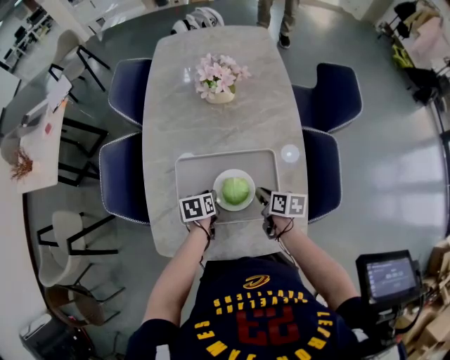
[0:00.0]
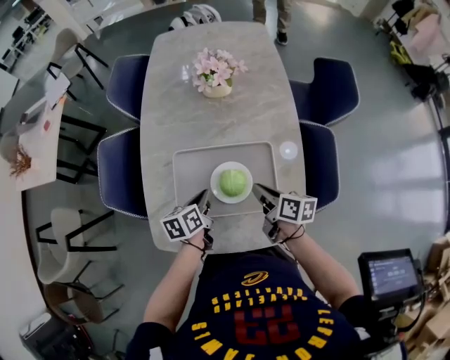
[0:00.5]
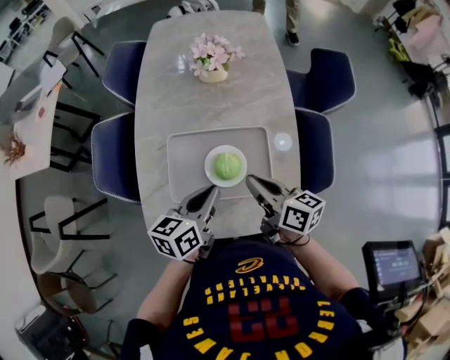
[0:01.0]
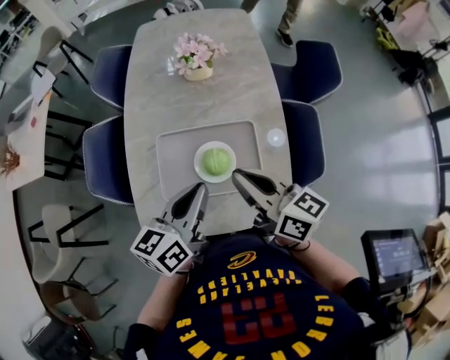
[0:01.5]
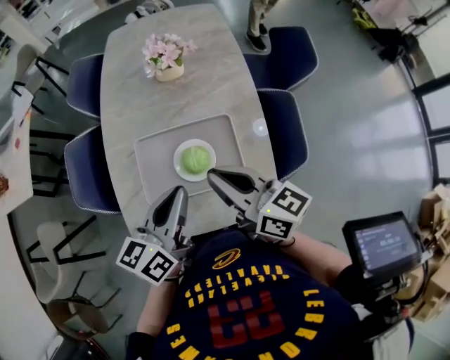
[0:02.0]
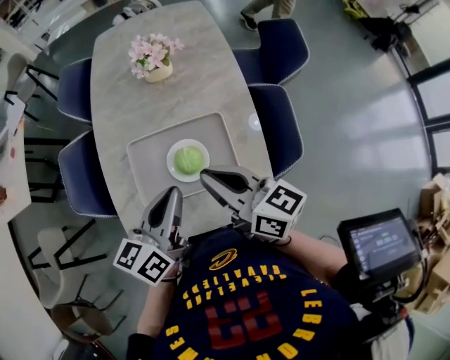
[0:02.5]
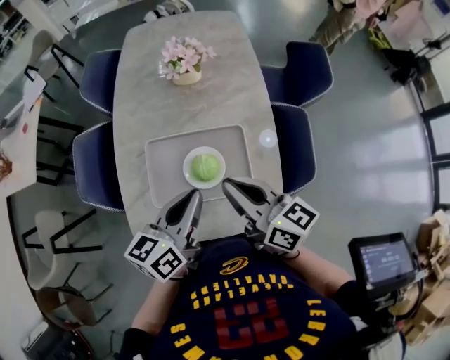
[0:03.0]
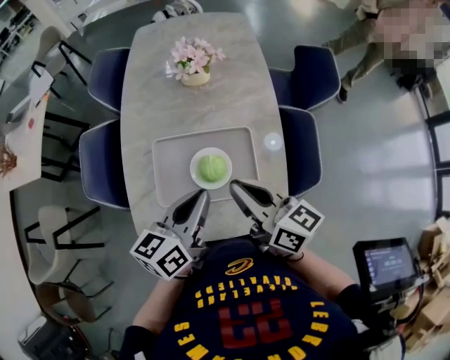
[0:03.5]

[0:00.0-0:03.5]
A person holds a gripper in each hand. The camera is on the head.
0:00.0 to 0:02.0: The grippers both shift upward by roughly 30 cm. The left gripper tips its fingers upward by approximately 50 degrees. Meanwhile the right gripper angles its fingers upward, by roughly 40 degrees.
0:02.0 to 0:03.5: The grippers make only small movements.

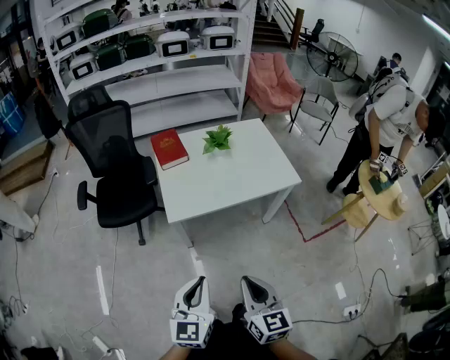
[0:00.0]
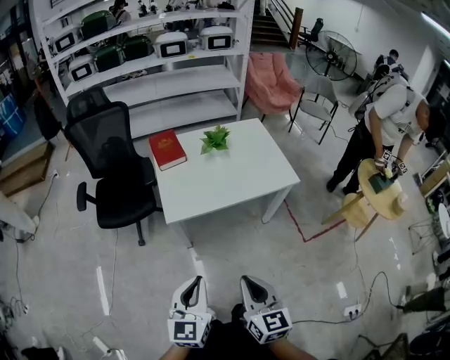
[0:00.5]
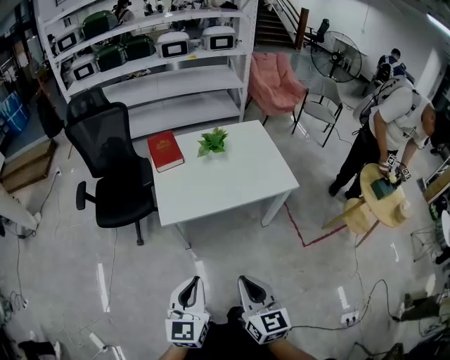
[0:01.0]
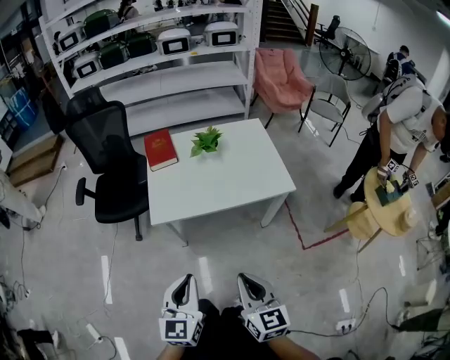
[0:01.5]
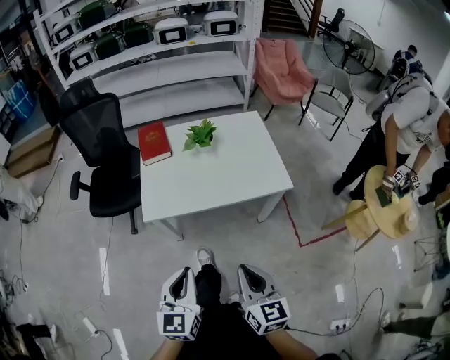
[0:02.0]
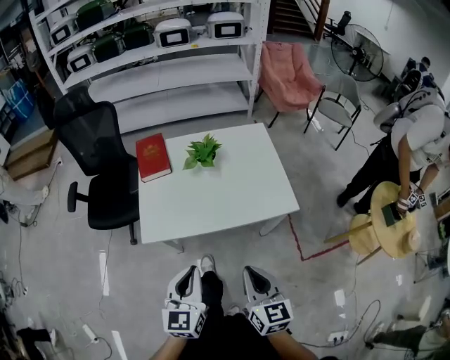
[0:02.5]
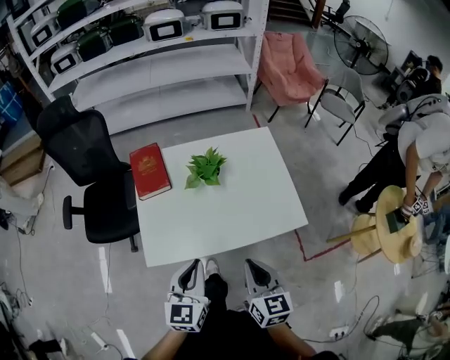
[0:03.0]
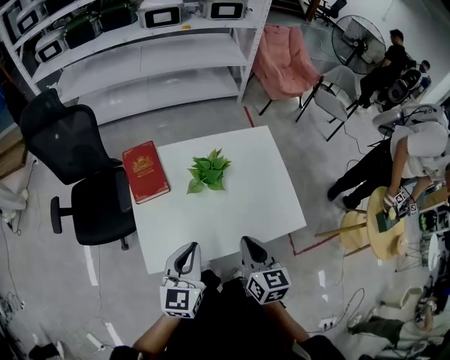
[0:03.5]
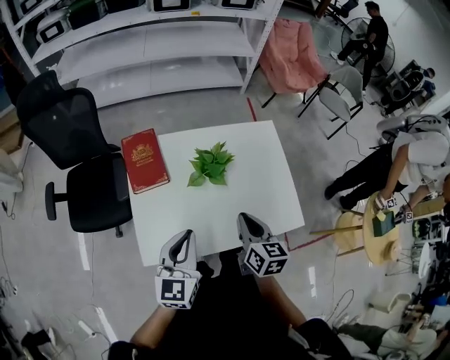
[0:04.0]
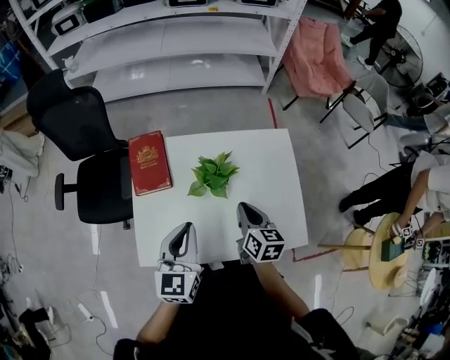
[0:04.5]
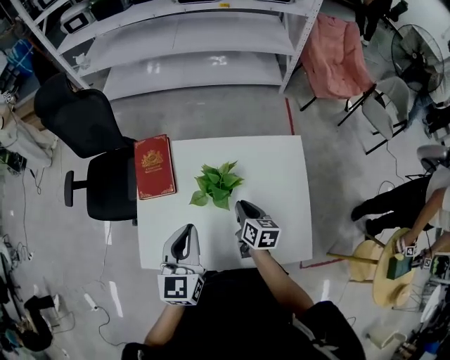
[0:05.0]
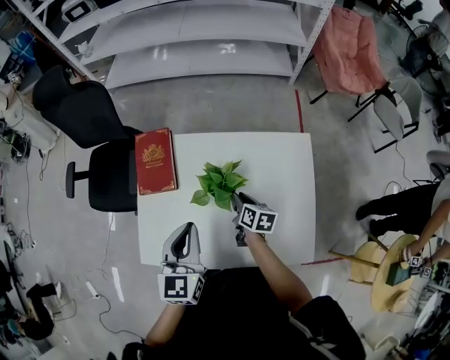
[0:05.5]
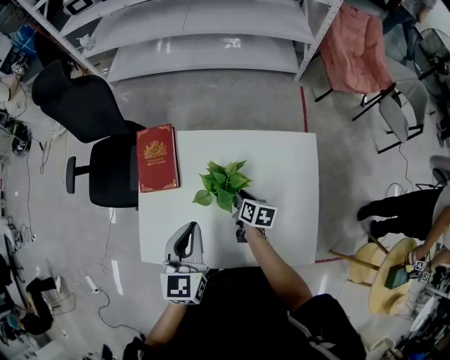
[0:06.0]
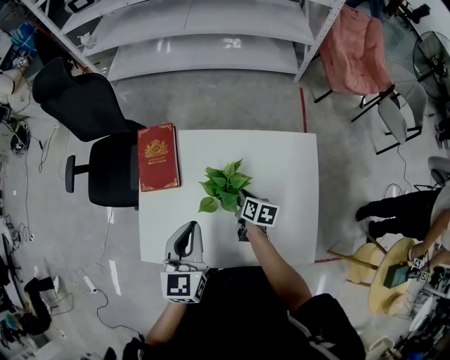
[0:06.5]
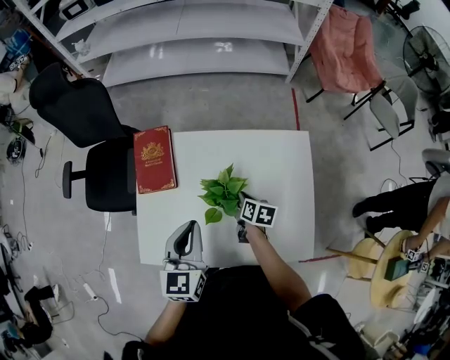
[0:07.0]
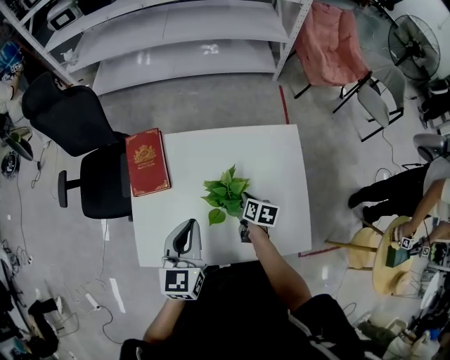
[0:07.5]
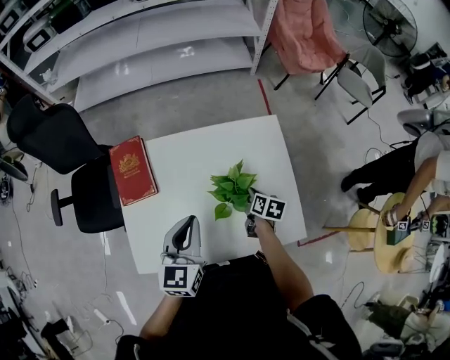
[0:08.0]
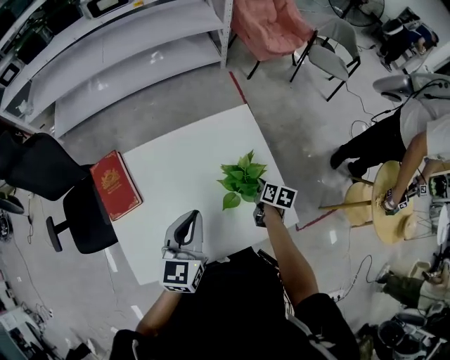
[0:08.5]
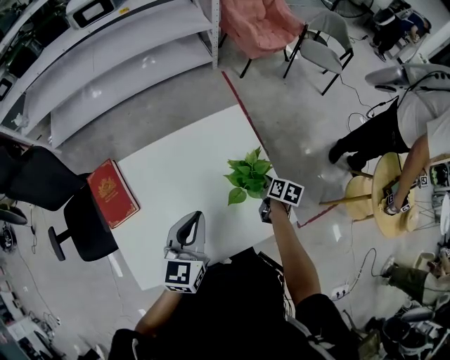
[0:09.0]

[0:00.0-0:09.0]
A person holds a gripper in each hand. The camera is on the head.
0:00.0 to 0:02.0: Both grippers travel together to the right and forward, some 20 cm.
0:02.0 to 0:04.5: Both grippers are carried forward, some 50 cm.
0:04.5 to 0:07.0: The right gripper heads downward and forward, covering roughly 20 cm, and changes its angle by roughly 30 degrees. The left gripper travels forward by roughly 5 cm.
0:07.0 to 0:09.0: The right gripper shifts by some 30 cm, and turns by approximately 30 degrees. Meanwhile the left gripper changes place by some 15 cm, and rotates about 30 degrees.

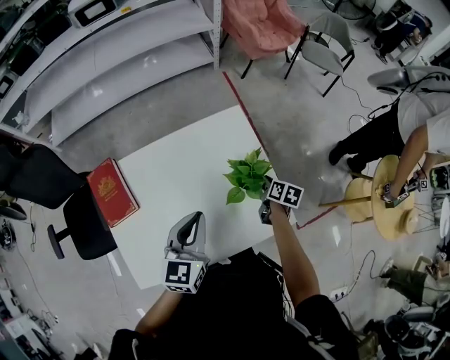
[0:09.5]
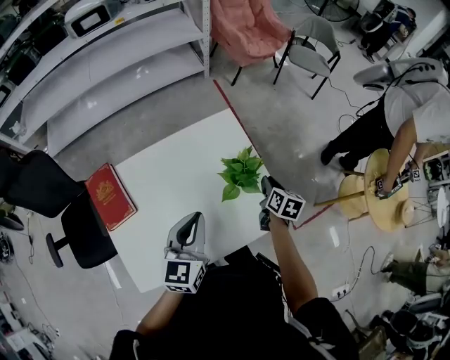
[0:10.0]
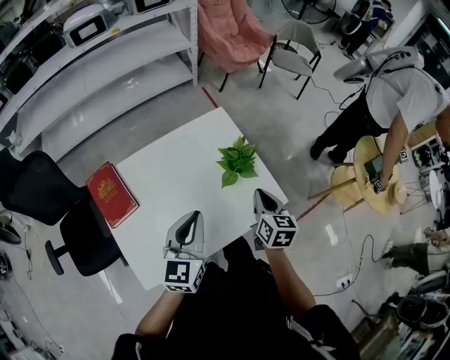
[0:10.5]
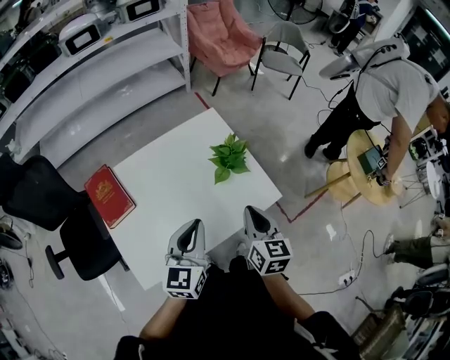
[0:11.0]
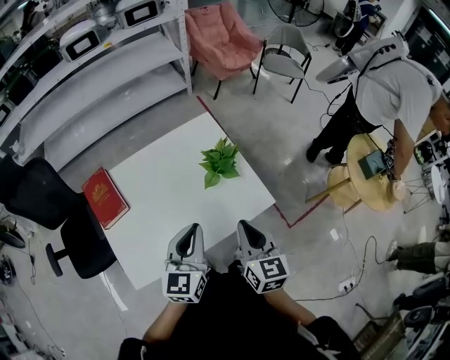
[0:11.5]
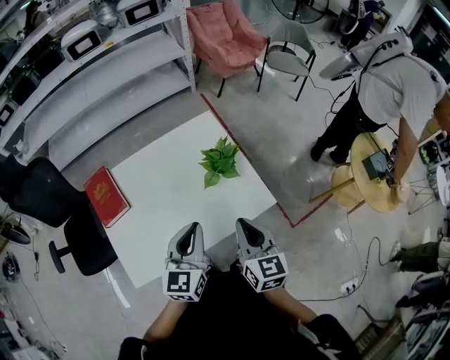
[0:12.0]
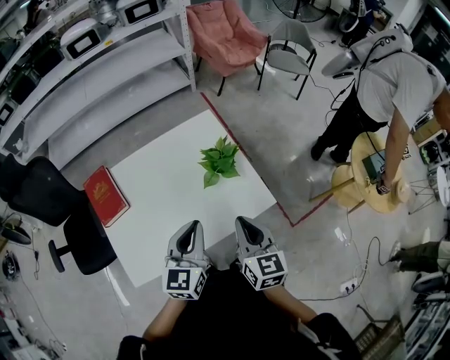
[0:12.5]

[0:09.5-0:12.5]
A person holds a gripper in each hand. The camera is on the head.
0:09.5 to 0:11.0: The left gripper is displaced backward by approximately 15 cm, while the right gripper is displaced backward and upward by about 35 cm, and rotates roughly 40 degrees.
0:11.0 to 0:12.5: The left gripper travels to the right by roughly 5 cm.

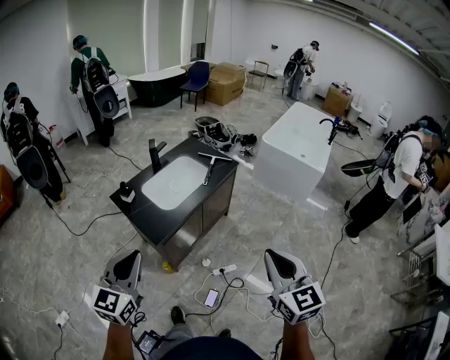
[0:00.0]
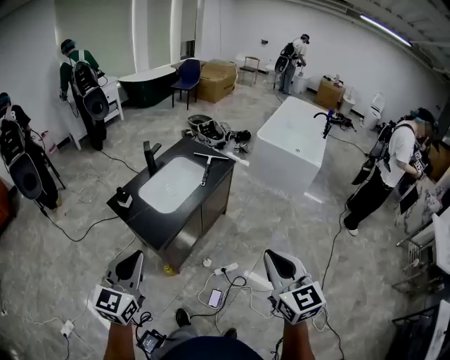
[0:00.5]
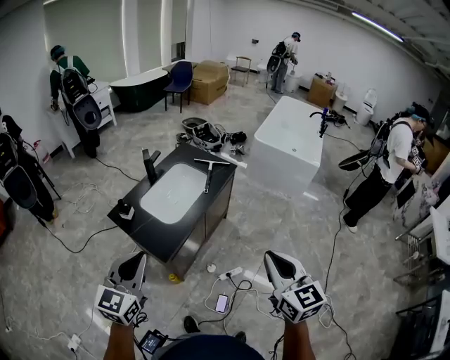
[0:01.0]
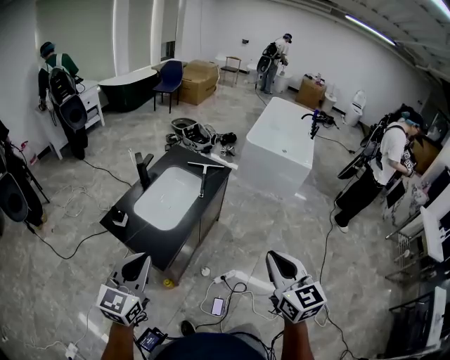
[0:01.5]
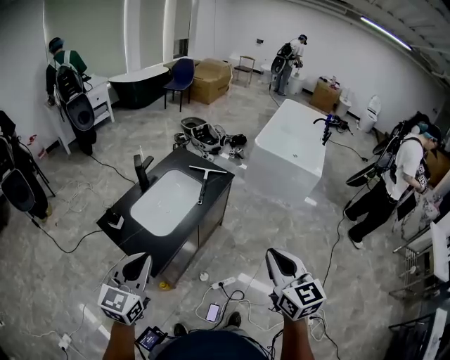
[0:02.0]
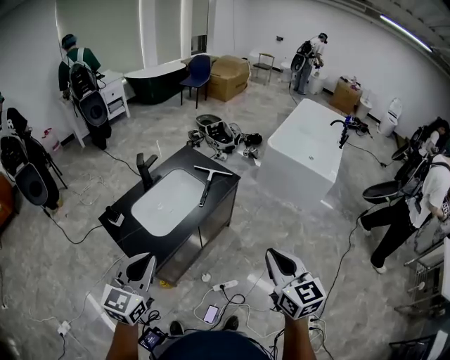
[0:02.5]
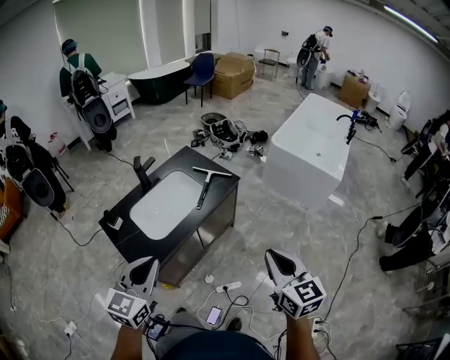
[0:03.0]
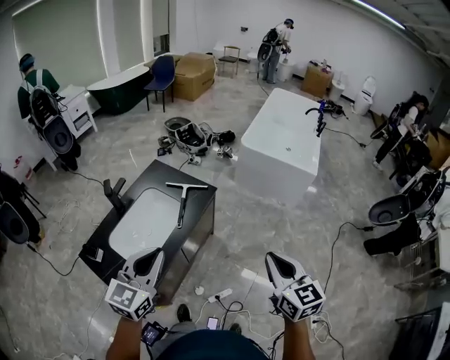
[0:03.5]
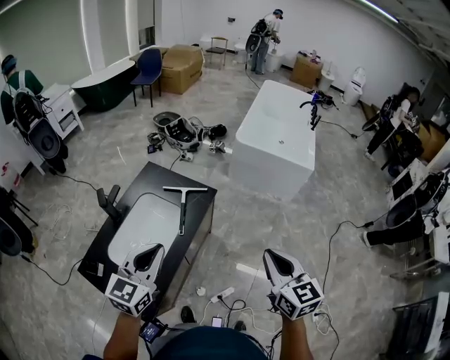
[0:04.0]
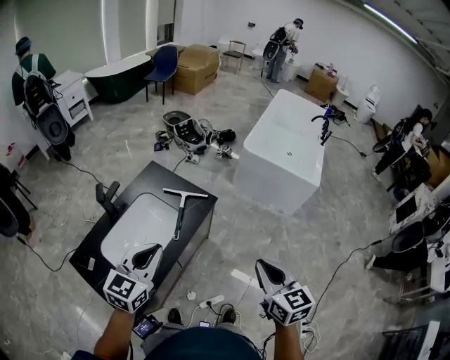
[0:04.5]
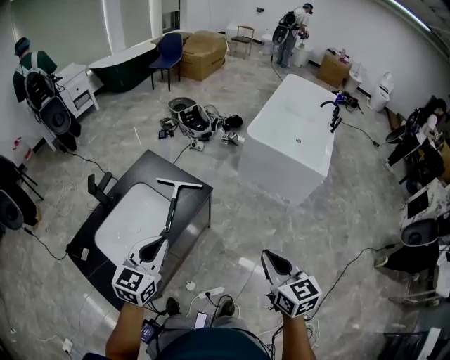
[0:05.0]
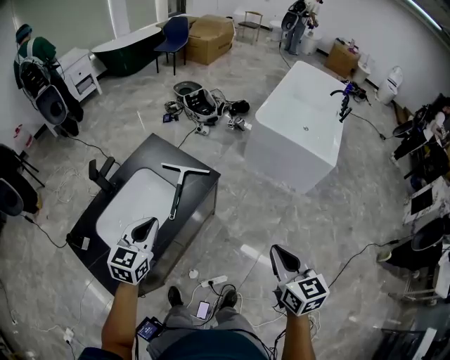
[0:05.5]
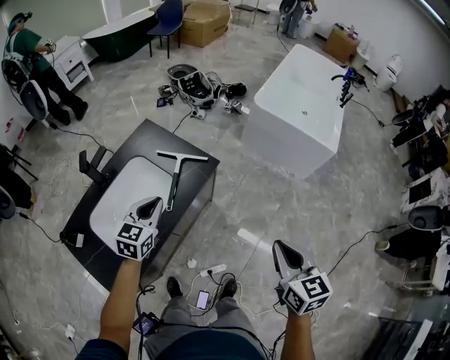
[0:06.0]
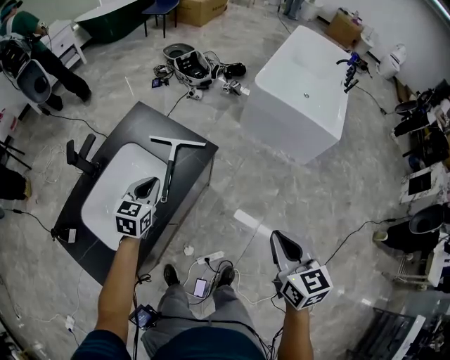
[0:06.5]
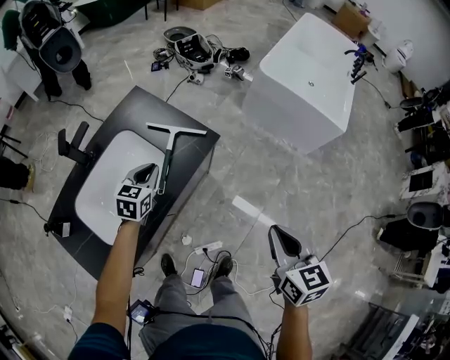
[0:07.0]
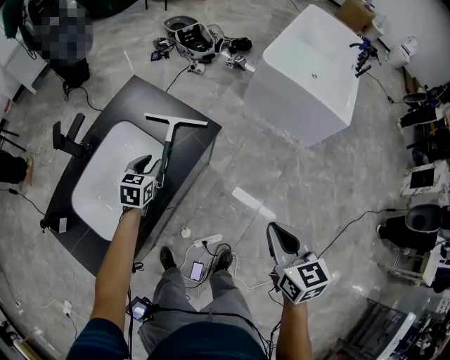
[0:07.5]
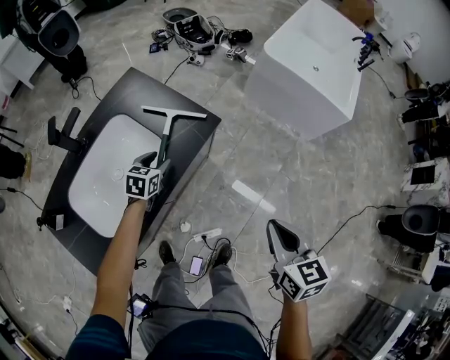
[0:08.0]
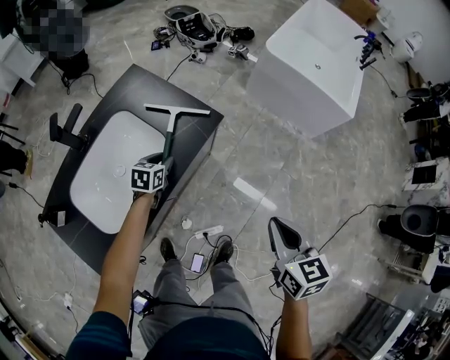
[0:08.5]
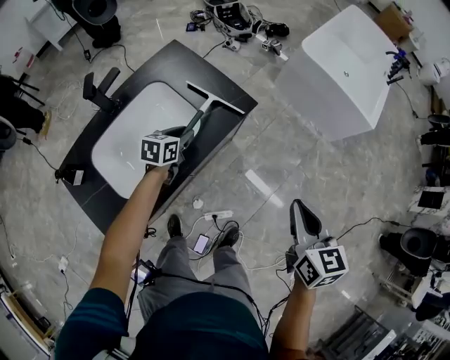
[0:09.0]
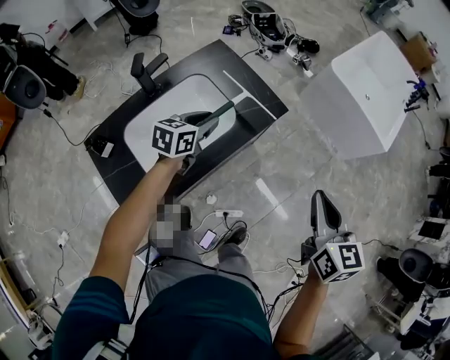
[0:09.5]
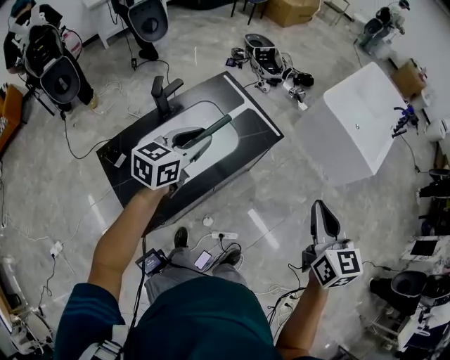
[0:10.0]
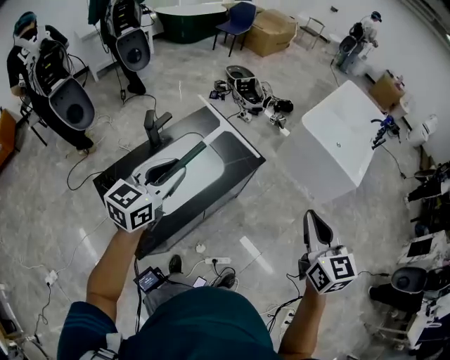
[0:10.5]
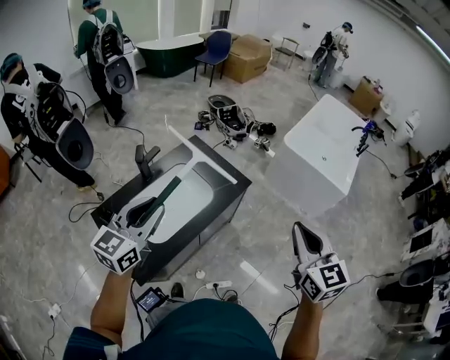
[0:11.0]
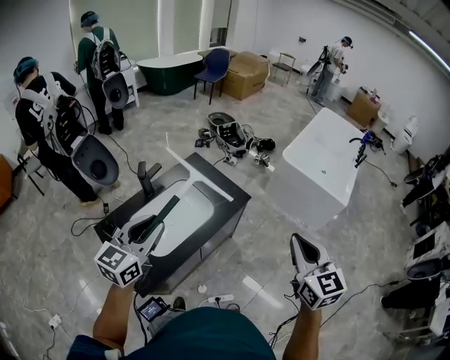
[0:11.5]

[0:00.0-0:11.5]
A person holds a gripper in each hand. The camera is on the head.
0:00.0 to 0:02.0: The two grippers go roughly 20 cm forward.
0:02.0 to 0:04.0: The two grippers go roughly 25 cm forward.
0:04.0 to 0:06.0: The left gripper shifts some 25 cm downward and forward, while the right gripper goes roughly 20 cm downward, forward and to the right.
0:06.0 to 0:07.5: The right gripper is displaced downward and forward by about 10 cm. Meanwhile the left gripper heads downward and forward, covering some 20 cm, and opens.
0:07.5 to 0:09.5: The left gripper goes about 15 cm upward and backward. Meanwhile the right gripper is displaced upward and to the left by about 10 cm.
0:09.5 to 0:11.5: The right gripper moves upward and backward, roughly 25 cm, while the left gripper heads upward and backward, covering about 40 cm, and swivels some 30 degrees.
